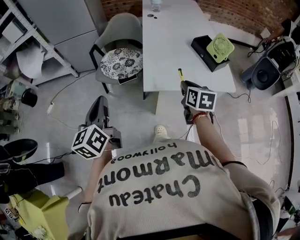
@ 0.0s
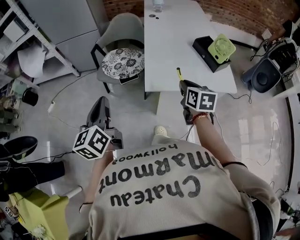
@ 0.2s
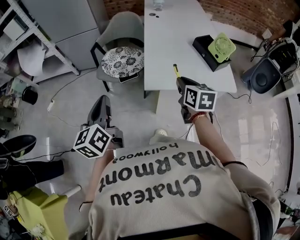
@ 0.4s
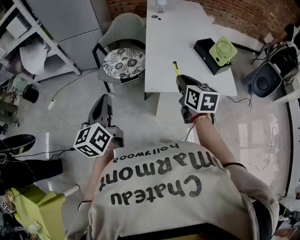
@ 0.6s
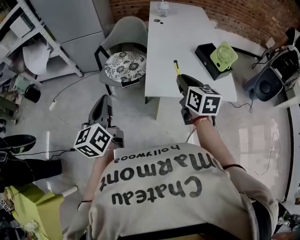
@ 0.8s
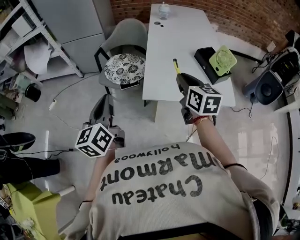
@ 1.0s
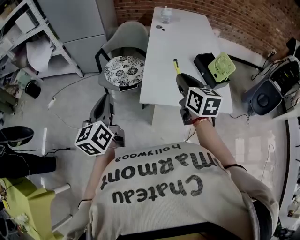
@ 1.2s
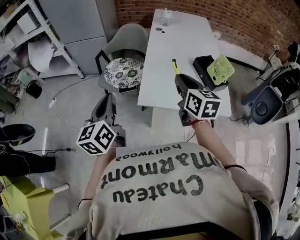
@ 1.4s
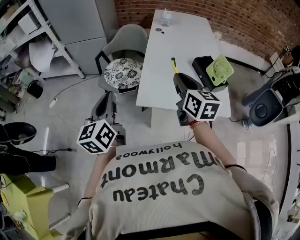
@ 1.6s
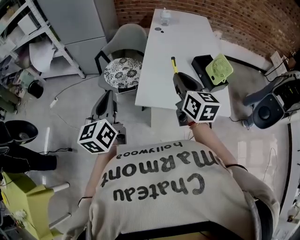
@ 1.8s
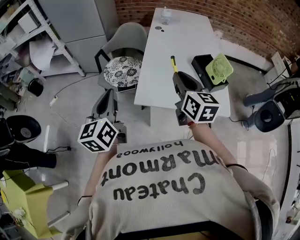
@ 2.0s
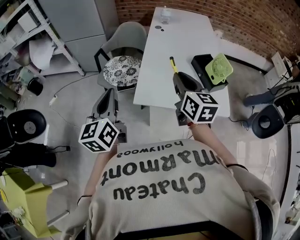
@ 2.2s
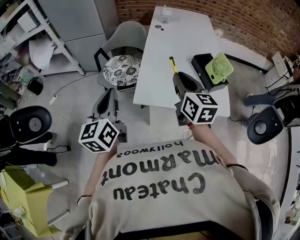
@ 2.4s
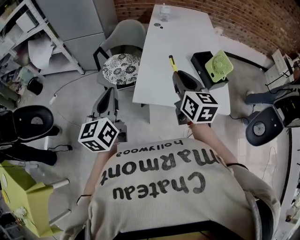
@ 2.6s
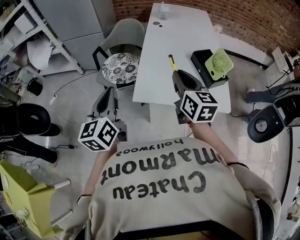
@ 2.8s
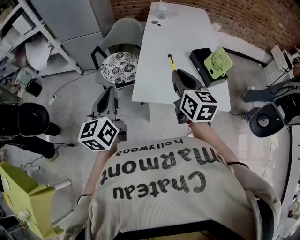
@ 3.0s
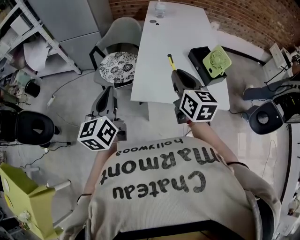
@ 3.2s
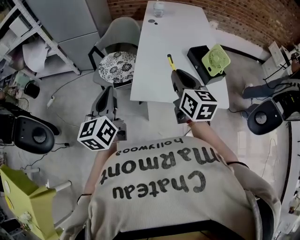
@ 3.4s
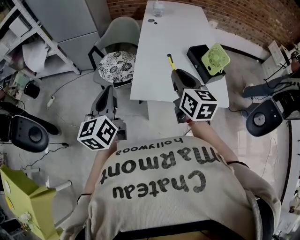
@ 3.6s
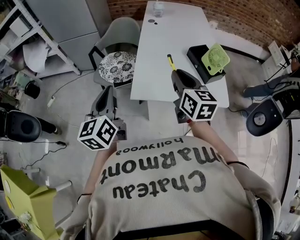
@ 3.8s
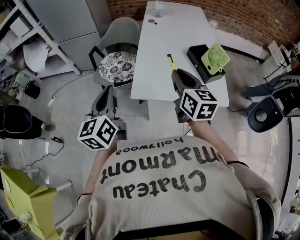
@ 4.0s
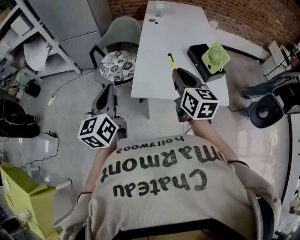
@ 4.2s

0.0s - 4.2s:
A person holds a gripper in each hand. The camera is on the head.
0.0s - 1.4s: The right gripper moves upward and forward, roughly 15 cm, and swivels some 20 degrees. Meanwhile the left gripper is displaced to the right by some 10 cm.
1.4s - 2.8s: The left gripper moves to the right, about 5 cm.
2.8s - 4.2s: There are only small adjustments of the grippers.

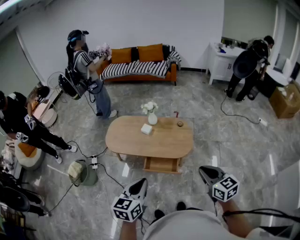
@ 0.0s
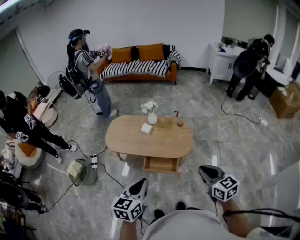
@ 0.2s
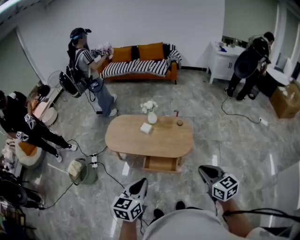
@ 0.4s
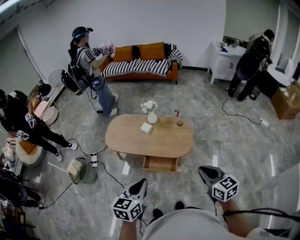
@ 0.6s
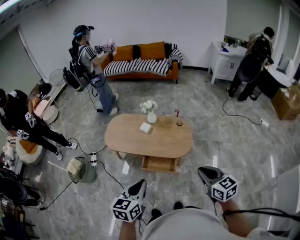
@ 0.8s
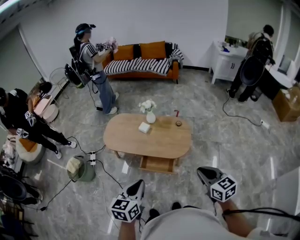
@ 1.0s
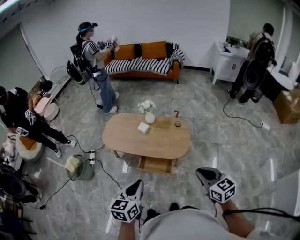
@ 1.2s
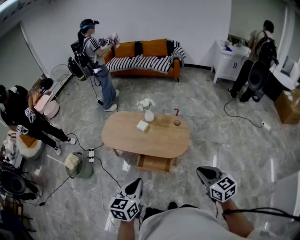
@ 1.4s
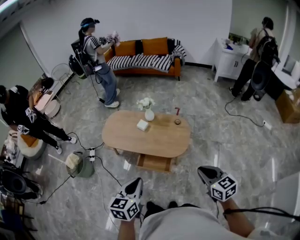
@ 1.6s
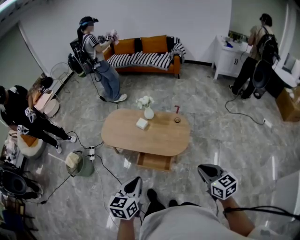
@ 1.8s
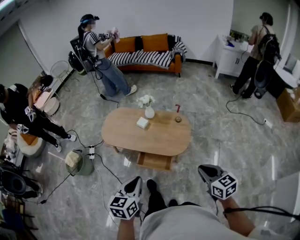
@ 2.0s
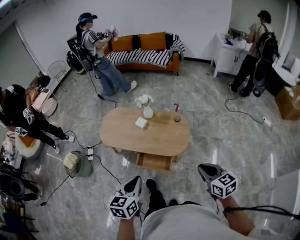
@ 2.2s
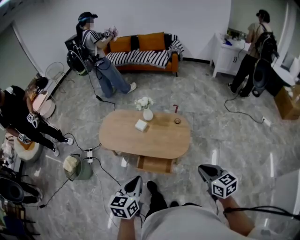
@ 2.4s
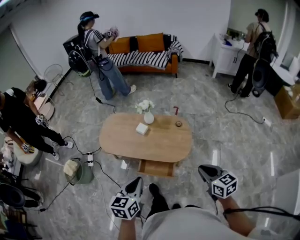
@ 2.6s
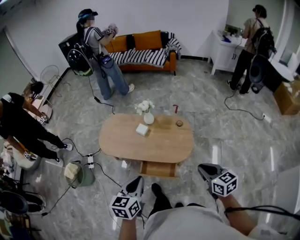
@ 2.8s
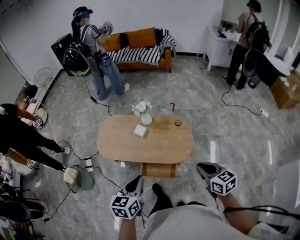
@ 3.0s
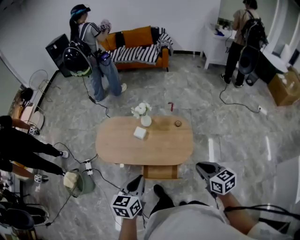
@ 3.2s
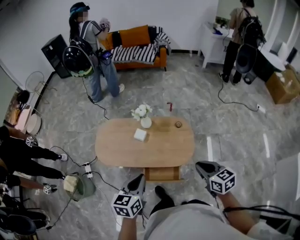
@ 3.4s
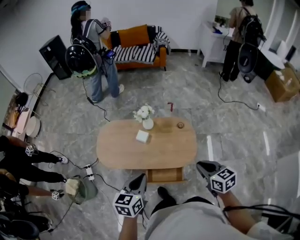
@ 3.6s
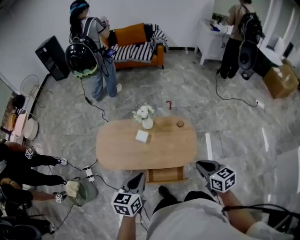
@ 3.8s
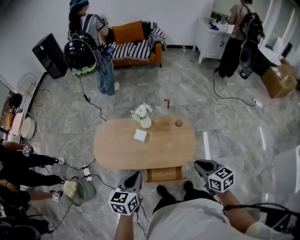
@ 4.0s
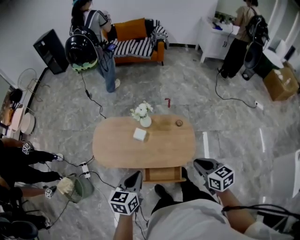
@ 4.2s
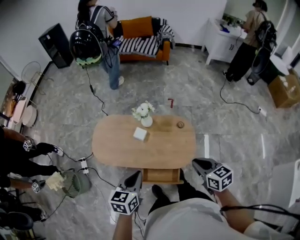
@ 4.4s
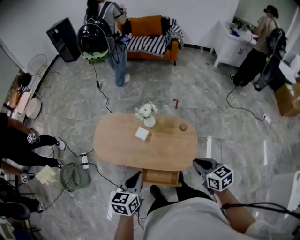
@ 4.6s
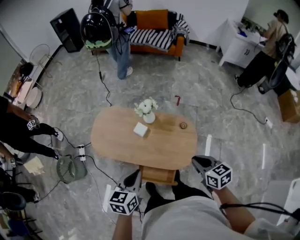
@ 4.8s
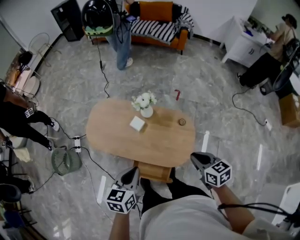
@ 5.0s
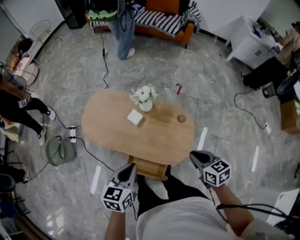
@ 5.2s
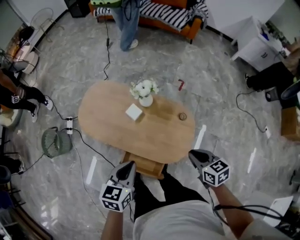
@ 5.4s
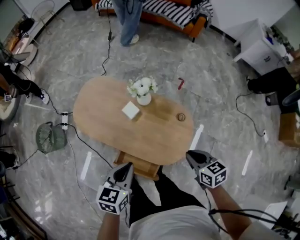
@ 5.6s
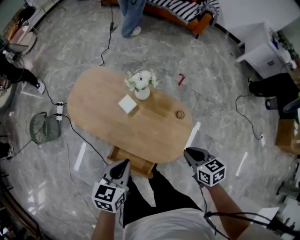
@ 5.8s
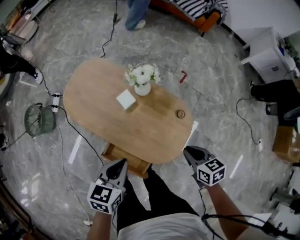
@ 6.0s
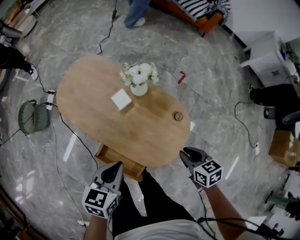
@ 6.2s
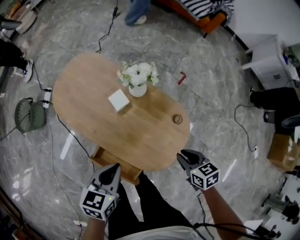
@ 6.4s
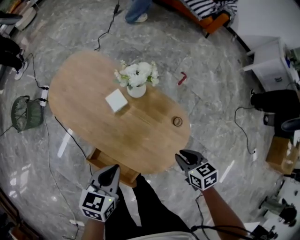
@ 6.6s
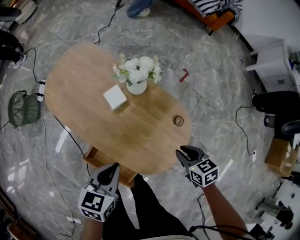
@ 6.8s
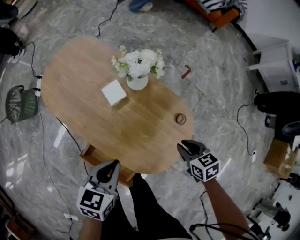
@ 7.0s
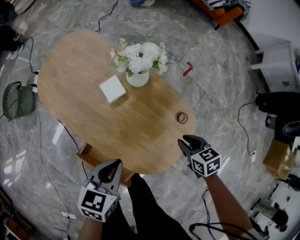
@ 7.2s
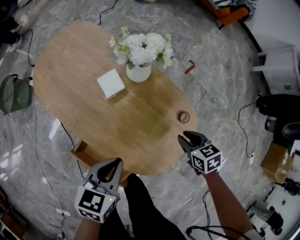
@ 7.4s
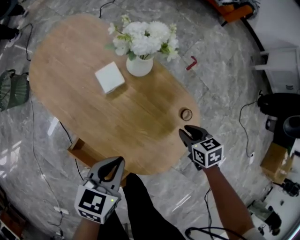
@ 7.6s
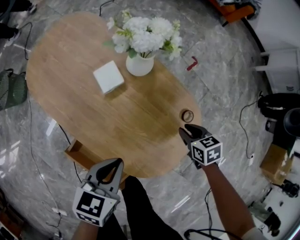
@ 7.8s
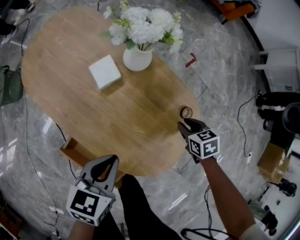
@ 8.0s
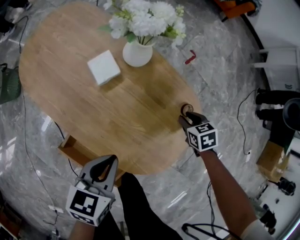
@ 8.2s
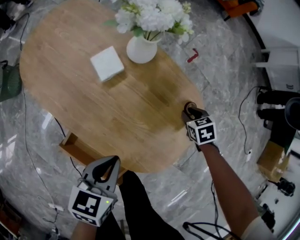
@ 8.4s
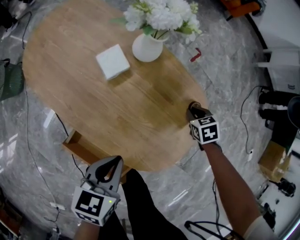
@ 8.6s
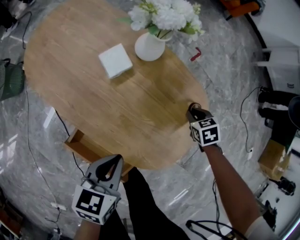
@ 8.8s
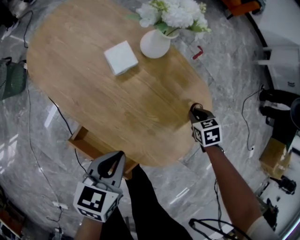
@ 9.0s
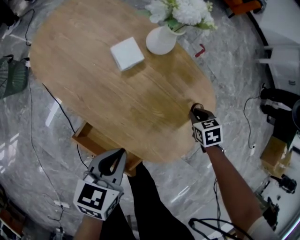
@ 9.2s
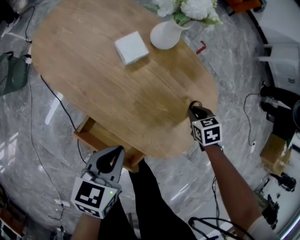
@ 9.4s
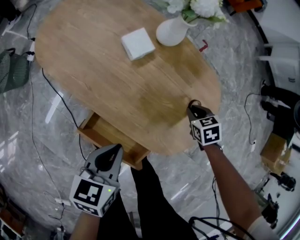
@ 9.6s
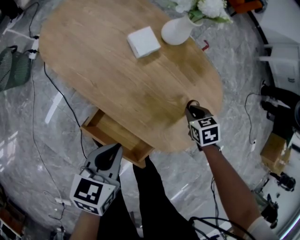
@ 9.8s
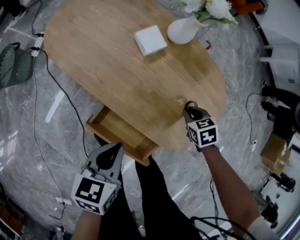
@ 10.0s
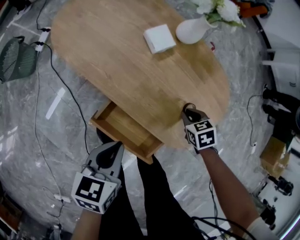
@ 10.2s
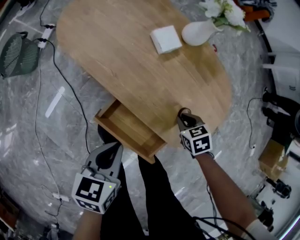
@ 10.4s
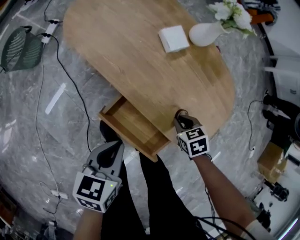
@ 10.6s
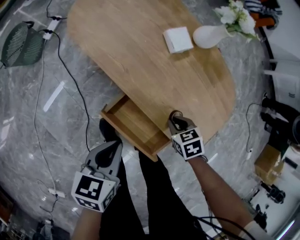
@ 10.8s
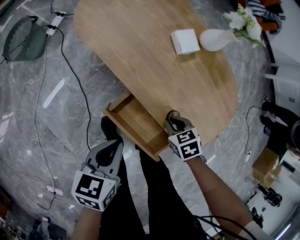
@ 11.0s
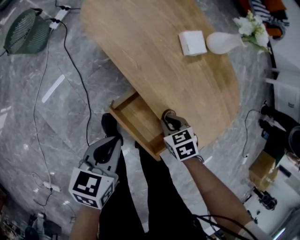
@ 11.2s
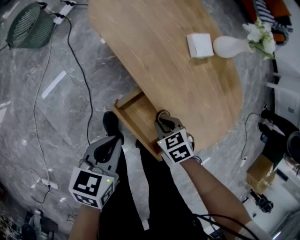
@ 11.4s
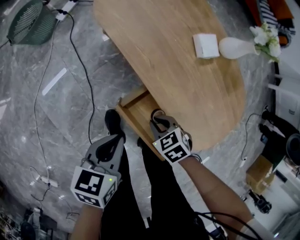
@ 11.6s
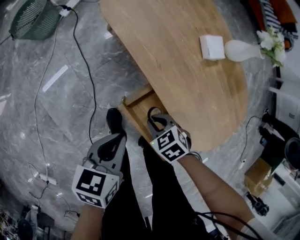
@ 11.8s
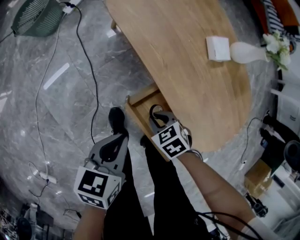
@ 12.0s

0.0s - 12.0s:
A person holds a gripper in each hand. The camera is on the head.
0.0s - 1.6s: Both grippers move to the right, roughly 10 cm.
1.6s - 3.0s: Both grippers move forward, roughly 15 cm.
3.0s - 4.4s: The right gripper travels forward and to the left by some 15 cm. The left gripper is displaced forward by approximately 15 cm.
4.4s - 6.0s: The right gripper travels downward, forward and to the right by approximately 25 cm, and turns by roughly 30 degrees. Meanwhile the left gripper goes approximately 20 cm downward and to the right.
6.0s - 7.6s: The right gripper goes approximately 25 cm downward and forward. The left gripper shifts about 20 cm downward.
7.6s - 9.0s: The left gripper shifts by some 5 cm. The right gripper goes some 5 cm downward.
9.0s - 10.4s: The grippers both shift to the left and backward by approximately 20 cm.
10.4s - 12.0s: The left gripper ends up approximately 10 cm from where it was. The right gripper shifts by some 25 cm, and turns by approximately 30 degrees.

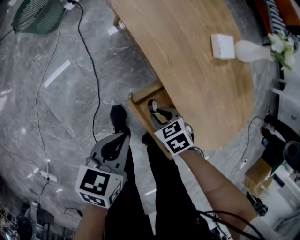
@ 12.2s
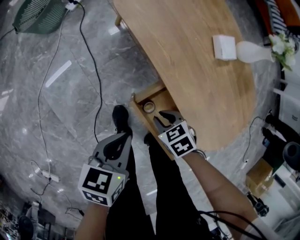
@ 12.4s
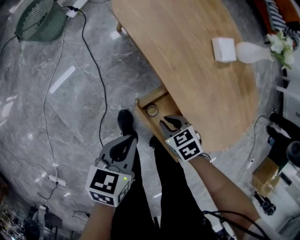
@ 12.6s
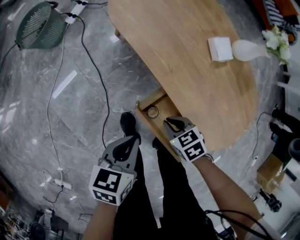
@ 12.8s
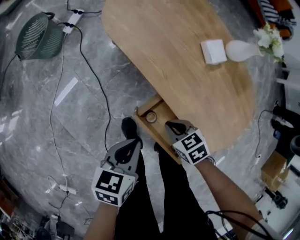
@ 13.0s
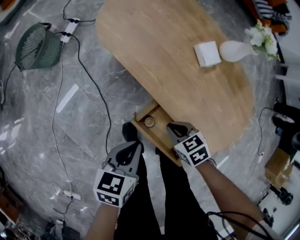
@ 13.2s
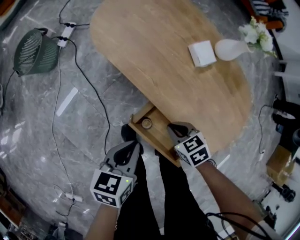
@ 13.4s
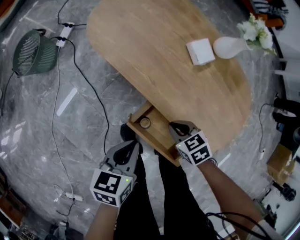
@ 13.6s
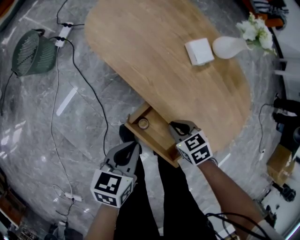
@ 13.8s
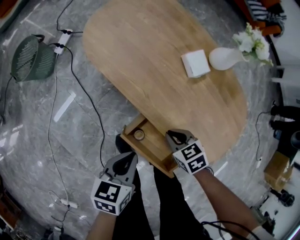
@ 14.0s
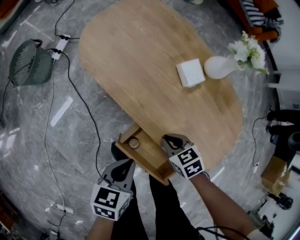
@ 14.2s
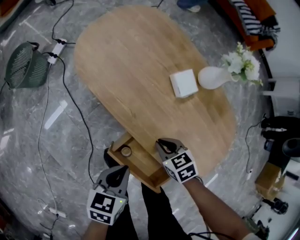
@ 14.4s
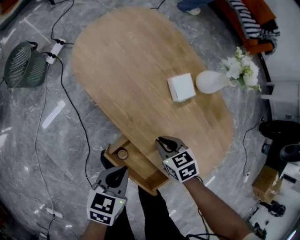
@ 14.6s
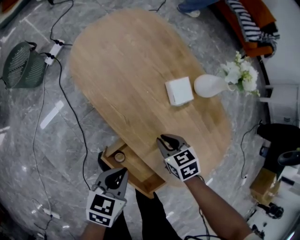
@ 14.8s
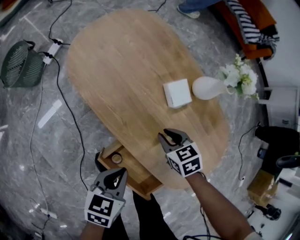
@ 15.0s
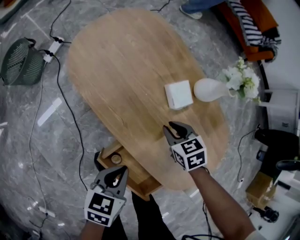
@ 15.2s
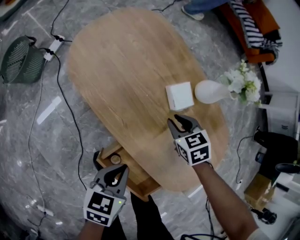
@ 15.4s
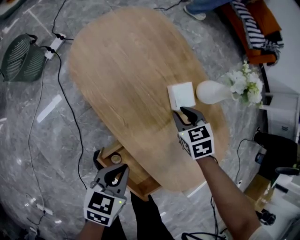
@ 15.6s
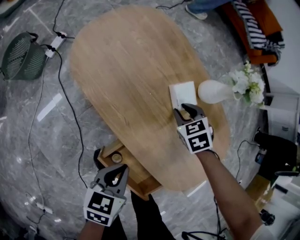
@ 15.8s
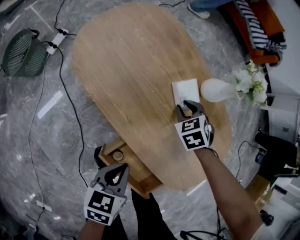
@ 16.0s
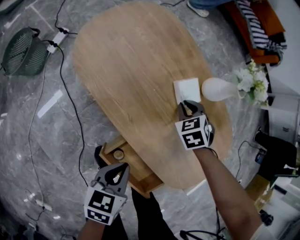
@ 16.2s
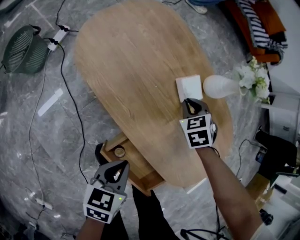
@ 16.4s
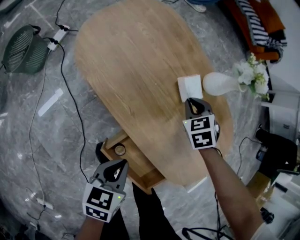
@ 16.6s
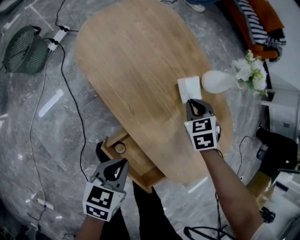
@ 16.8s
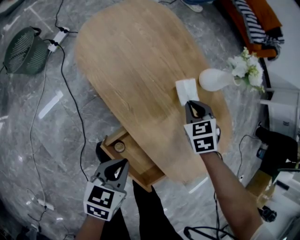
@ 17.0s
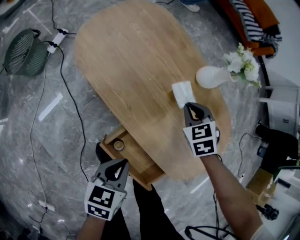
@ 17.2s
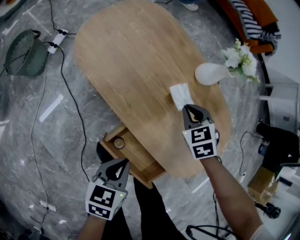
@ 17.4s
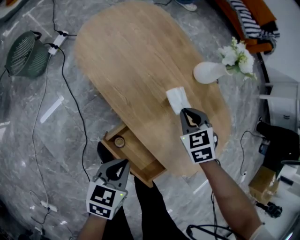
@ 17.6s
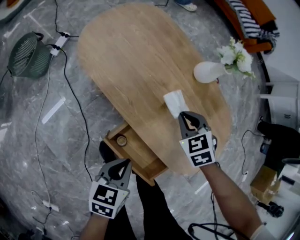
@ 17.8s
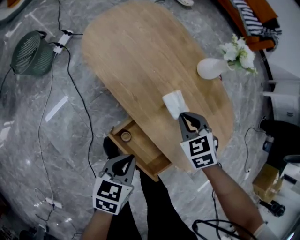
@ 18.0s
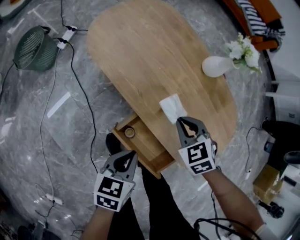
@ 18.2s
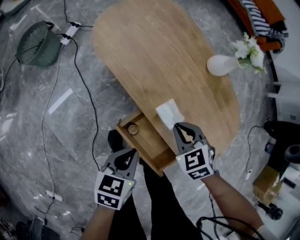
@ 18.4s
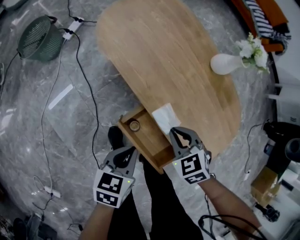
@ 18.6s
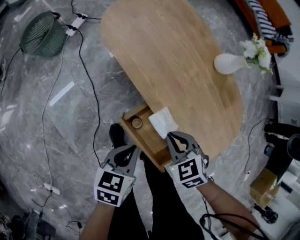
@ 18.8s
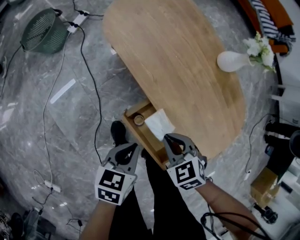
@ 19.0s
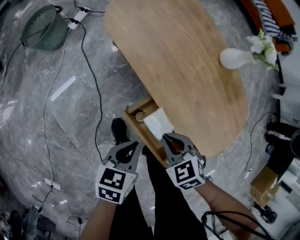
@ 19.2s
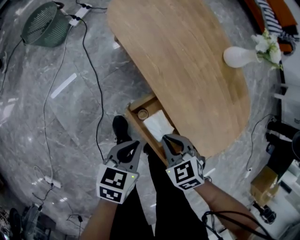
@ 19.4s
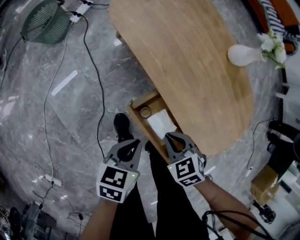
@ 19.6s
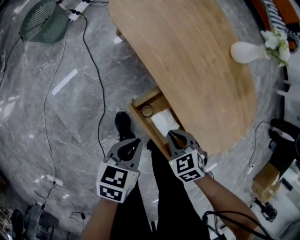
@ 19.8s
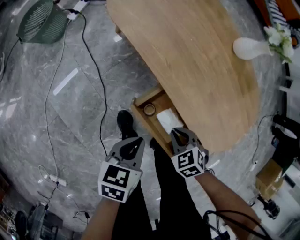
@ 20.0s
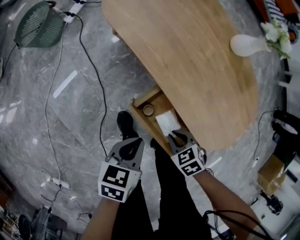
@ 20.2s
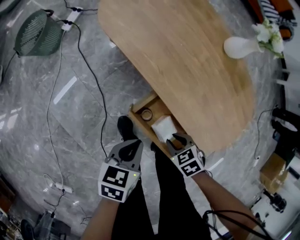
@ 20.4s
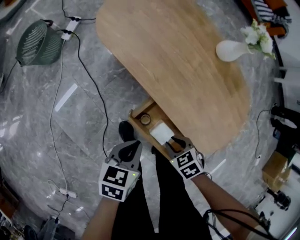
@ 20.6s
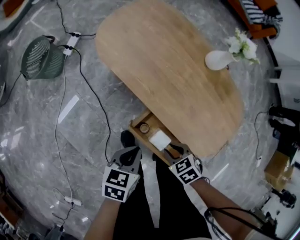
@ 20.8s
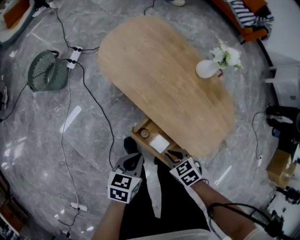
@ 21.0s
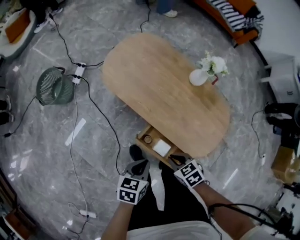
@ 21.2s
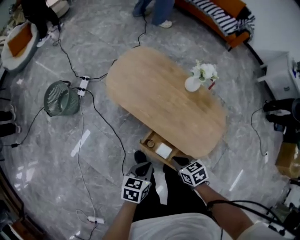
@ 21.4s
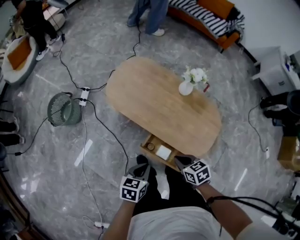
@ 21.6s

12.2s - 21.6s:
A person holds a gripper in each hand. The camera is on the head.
12.2s - 13.8s: The left gripper shifts about 5 cm to the right; the right gripper shifts roughly 10 cm to the right and upward.
13.8s - 15.4s: The left gripper travels forward and to the right by roughly 10 cm; the right gripper heads forward and to the right, covering approximately 25 cm.
17.0s - 18.4s: The right gripper shifts about 20 cm backward; the left gripper heads backward, covering about 5 cm.
18.4s - 20.0s: The left gripper ends up roughly 10 cm from where it was, while the right gripper goes about 15 cm backward and downward.
20.0s - 21.6s: The two grippers go approximately 25 cm upward. The right gripper swivels about 40 degrees.
